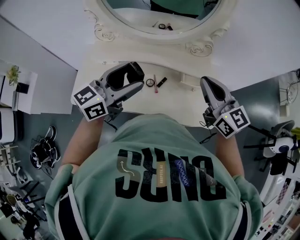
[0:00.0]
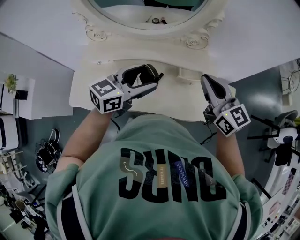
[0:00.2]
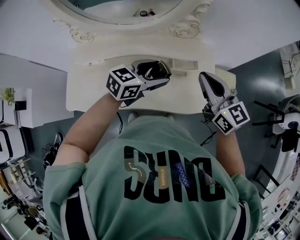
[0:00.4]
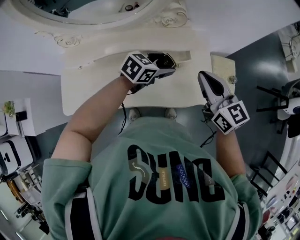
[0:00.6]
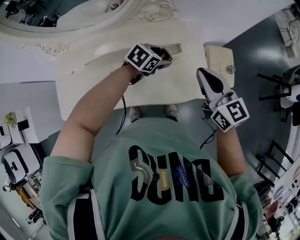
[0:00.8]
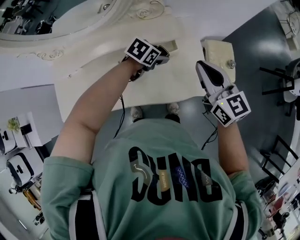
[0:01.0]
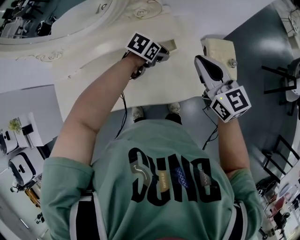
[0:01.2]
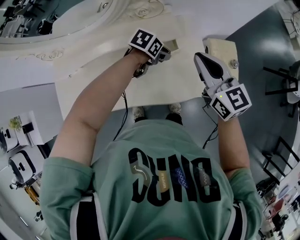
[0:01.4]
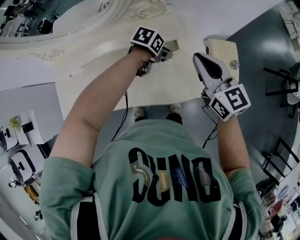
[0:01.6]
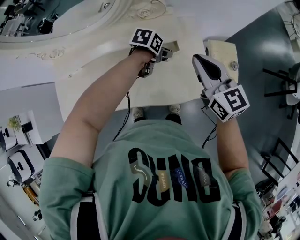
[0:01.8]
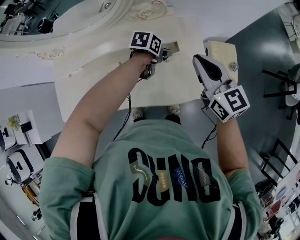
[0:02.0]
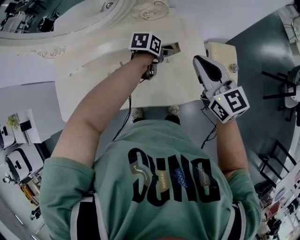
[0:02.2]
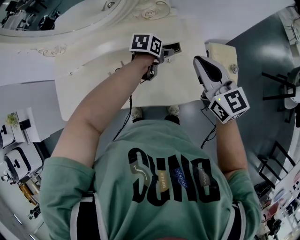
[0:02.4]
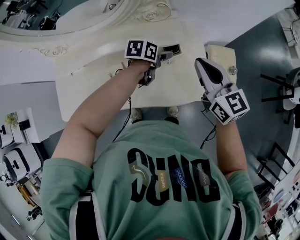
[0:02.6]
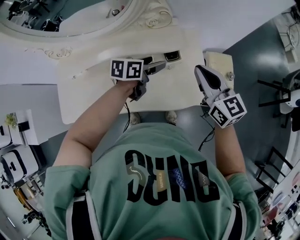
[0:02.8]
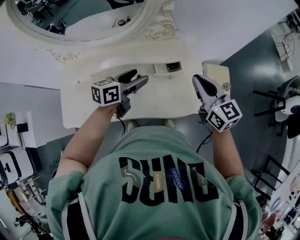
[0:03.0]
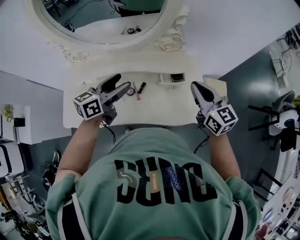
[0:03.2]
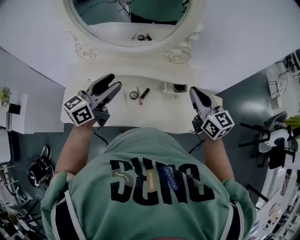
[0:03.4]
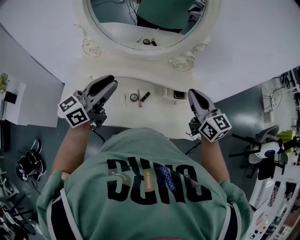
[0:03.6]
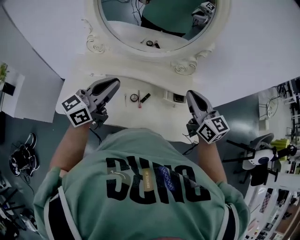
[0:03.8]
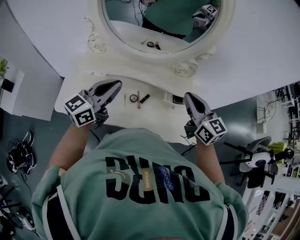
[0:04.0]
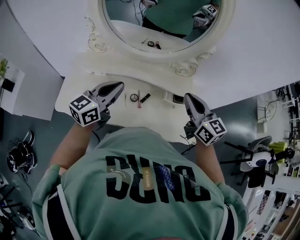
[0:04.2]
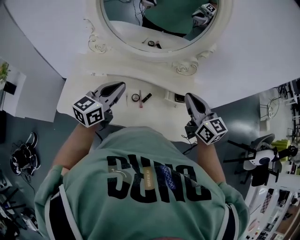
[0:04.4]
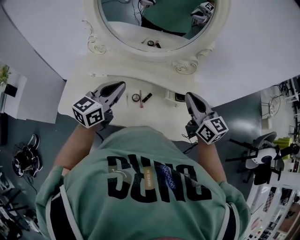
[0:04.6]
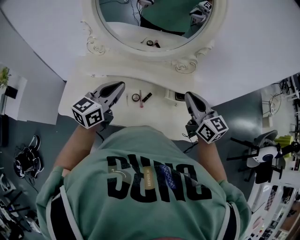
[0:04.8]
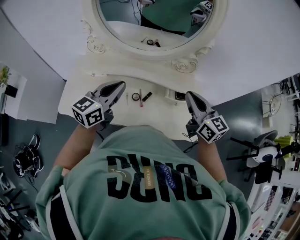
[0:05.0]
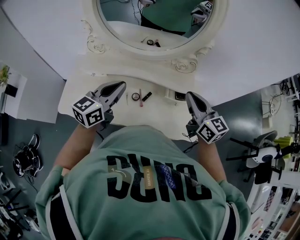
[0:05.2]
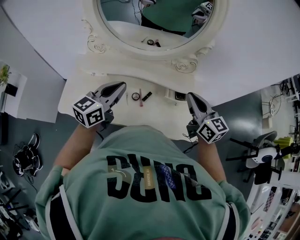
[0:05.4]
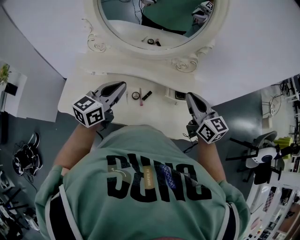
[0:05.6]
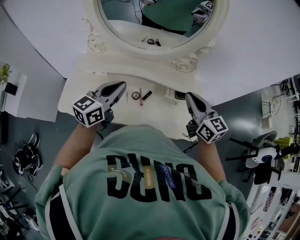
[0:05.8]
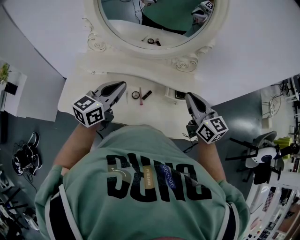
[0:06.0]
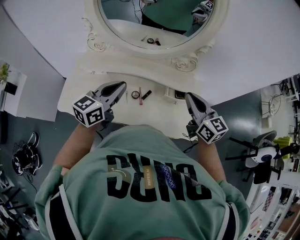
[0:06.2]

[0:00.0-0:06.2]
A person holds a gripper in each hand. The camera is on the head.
0:00.0 to 0:01.6: The right gripper ends up roughly 20 cm from where it was. The left gripper moves downward, roughly 30 cm, and tips its fingers downward by about 60 degrees.
0:01.6 to 0:03.2: The left gripper shifts roughly 35 cm upward, to the left and backward, and tips its fingers upward by about 50 degrees. Meanwhile the right gripper changes place by about 5 cm.
0:03.2 to 0:04.6: Both grippers move to the left, roughly 10 cm. The left gripper swivels roughly 20 degrees, and closes.
0:04.6 to 0:06.2: The grippers move only a little.

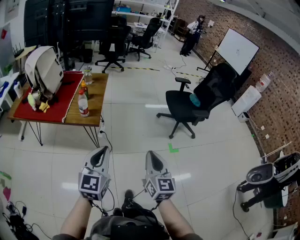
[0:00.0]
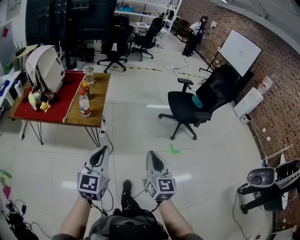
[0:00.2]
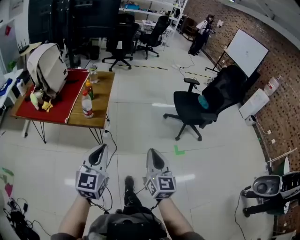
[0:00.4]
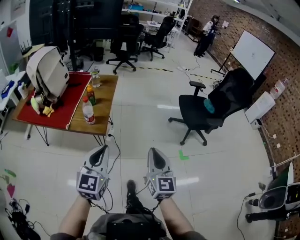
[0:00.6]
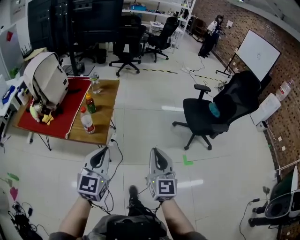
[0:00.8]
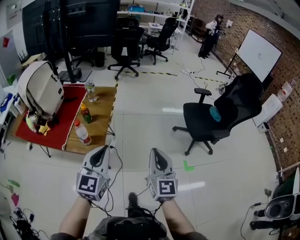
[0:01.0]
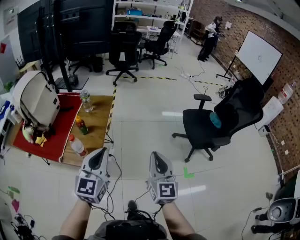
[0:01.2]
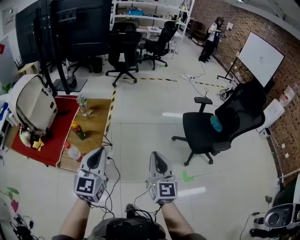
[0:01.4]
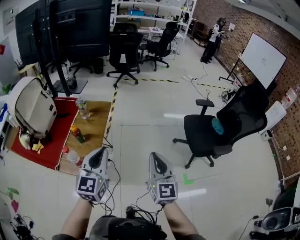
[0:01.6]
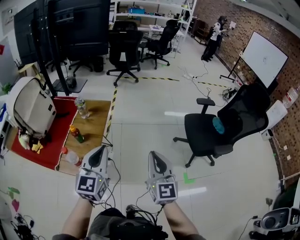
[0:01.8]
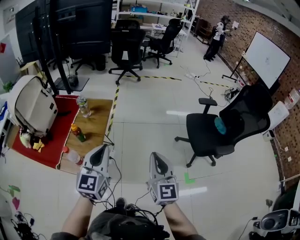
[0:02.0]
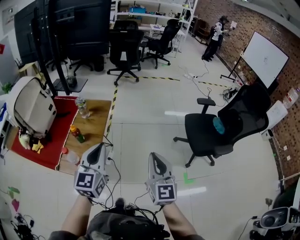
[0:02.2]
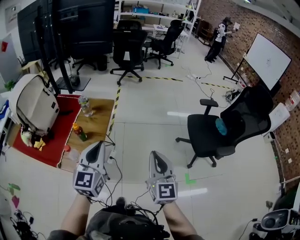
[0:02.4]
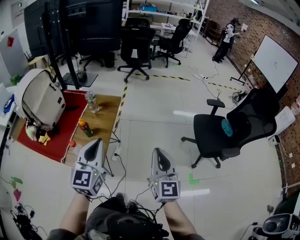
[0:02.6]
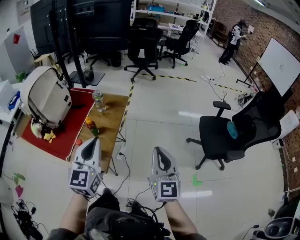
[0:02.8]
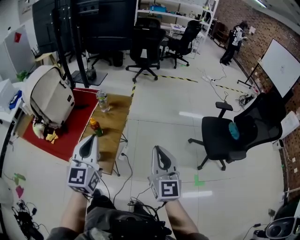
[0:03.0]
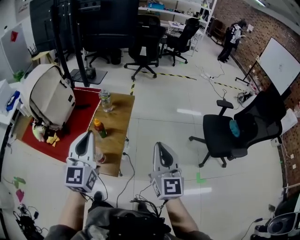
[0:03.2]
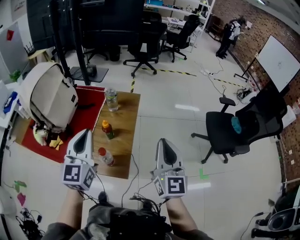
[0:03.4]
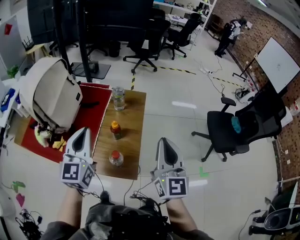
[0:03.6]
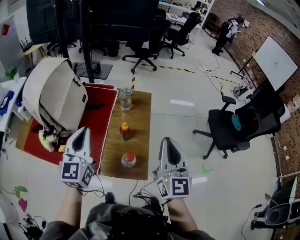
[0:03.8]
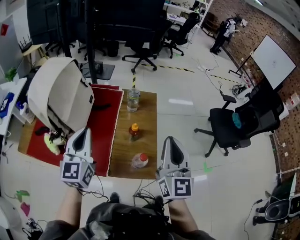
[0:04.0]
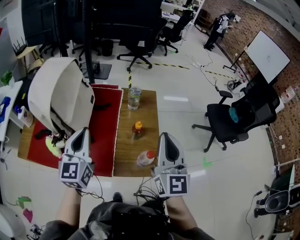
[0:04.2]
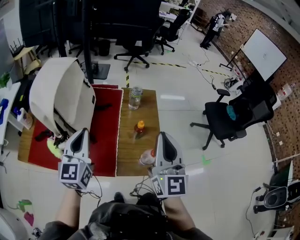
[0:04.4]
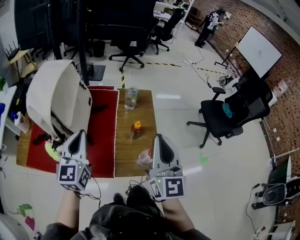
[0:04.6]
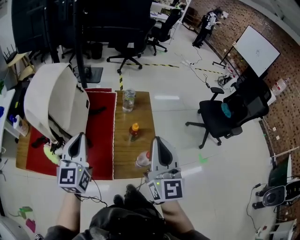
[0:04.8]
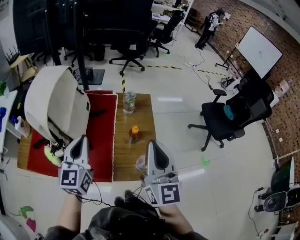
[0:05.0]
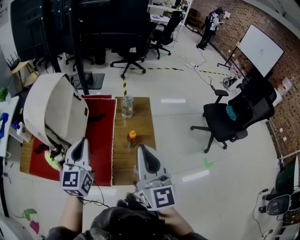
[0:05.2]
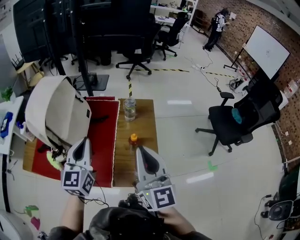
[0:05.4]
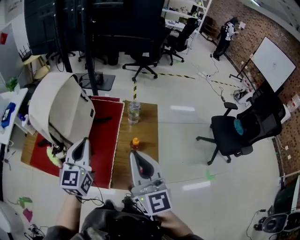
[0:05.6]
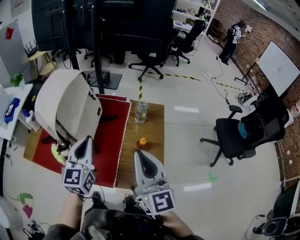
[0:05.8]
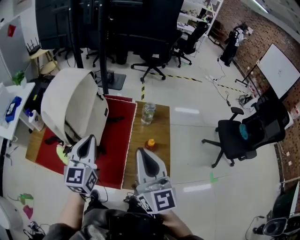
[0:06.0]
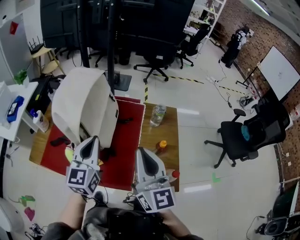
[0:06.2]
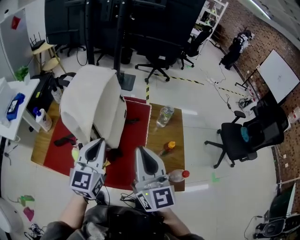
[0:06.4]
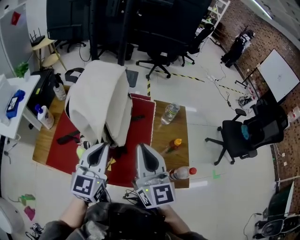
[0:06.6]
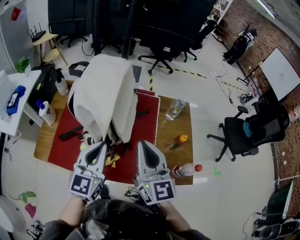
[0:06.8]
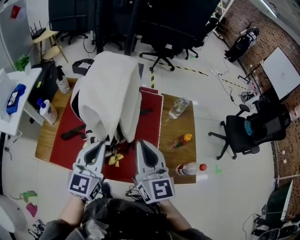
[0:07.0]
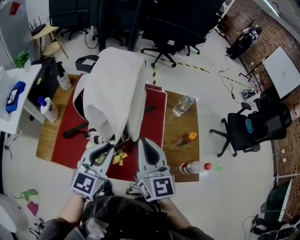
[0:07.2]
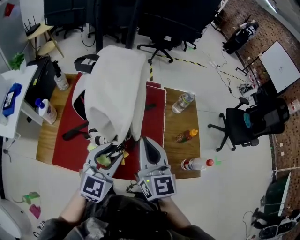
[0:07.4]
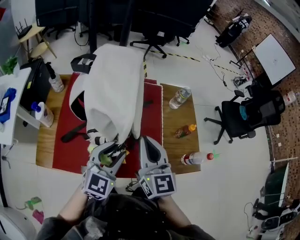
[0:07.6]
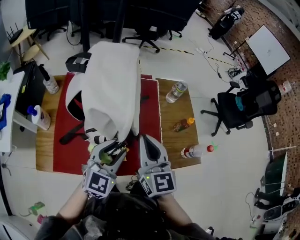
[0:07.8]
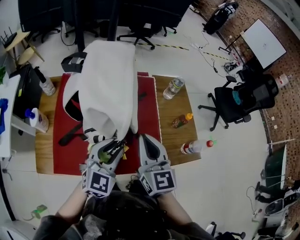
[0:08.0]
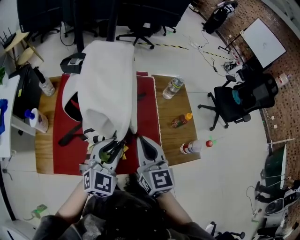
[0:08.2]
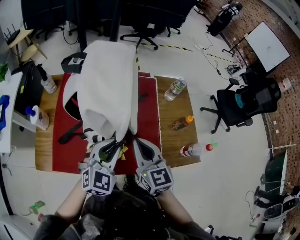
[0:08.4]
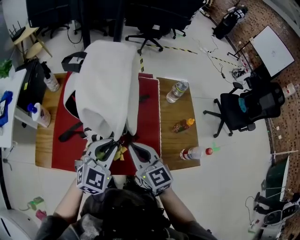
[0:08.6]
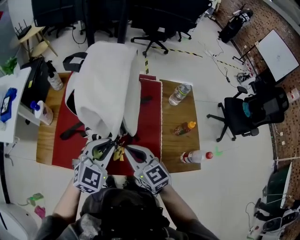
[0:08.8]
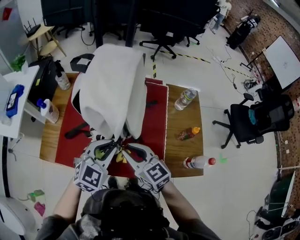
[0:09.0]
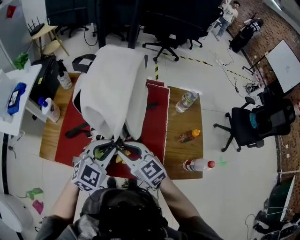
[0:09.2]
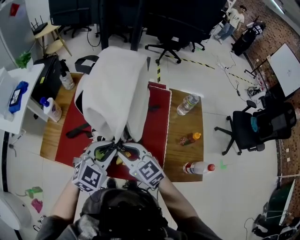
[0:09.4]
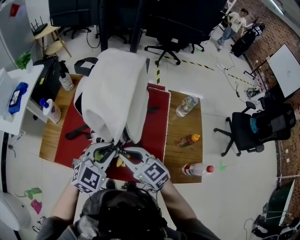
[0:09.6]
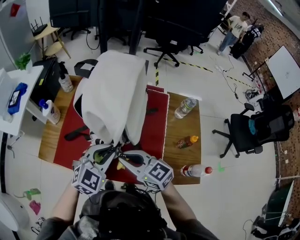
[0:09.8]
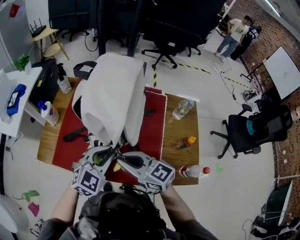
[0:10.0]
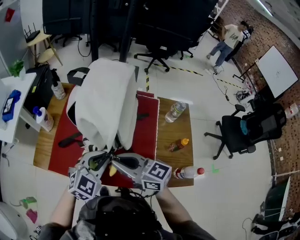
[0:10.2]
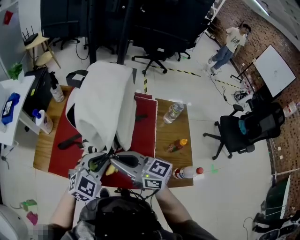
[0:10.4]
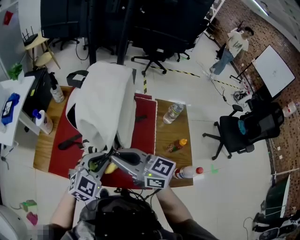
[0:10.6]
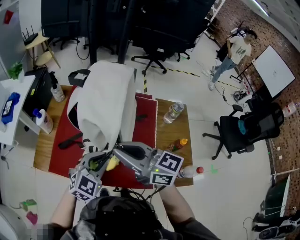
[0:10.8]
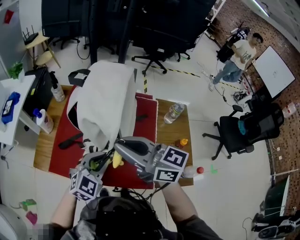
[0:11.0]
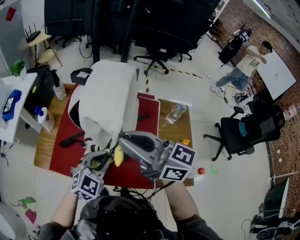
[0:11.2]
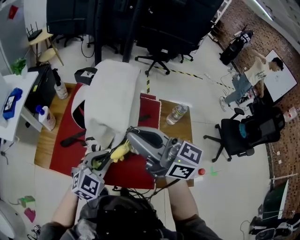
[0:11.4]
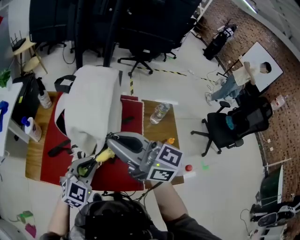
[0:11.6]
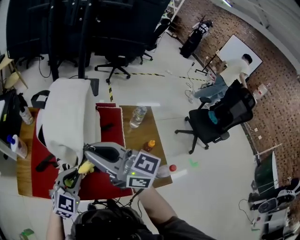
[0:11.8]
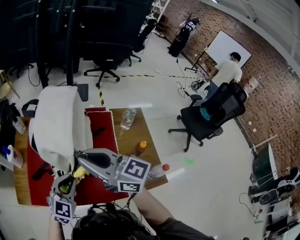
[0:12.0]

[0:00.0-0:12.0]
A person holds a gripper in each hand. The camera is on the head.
0:00.0 to 0:01.6: The pair of grippers is taken forward, about 50 cm.
0:01.6 to 0:03.0: Both grippers travel together to the left, some 10 cm.
0:03.0 to 0:04.4: The pair of grippers is taken to the left, about 50 cm.
0:04.4 to 0:06.0: The right gripper is displaced to the left by approximately 10 cm, and swivels some 20 degrees. The left gripper goes to the right and returns, approximately 10 cm each way.
0:06.0 to 0:07.6: The left gripper moves to the left and downward, approximately 25 cm, turns by approximately 40 degrees, and opens its fingers; the right gripper shifts some 30 cm to the left.
0:07.6 to 0:09.0: The right gripper heads downward, covering about 10 cm, and swivels some 40 degrees. Meanwhile the left gripper closes.
0:09.0 to 0:10.4: The right gripper shifts roughly 10 cm upward, and turns by some 30 degrees.
0:10.4 to 0:12.0: The right gripper moves upward, approximately 15 cm.

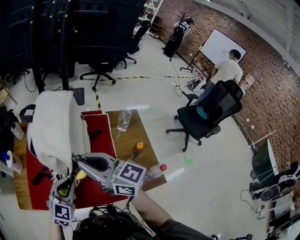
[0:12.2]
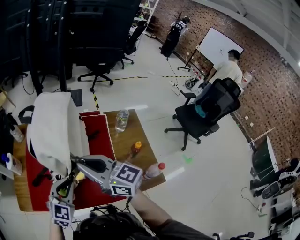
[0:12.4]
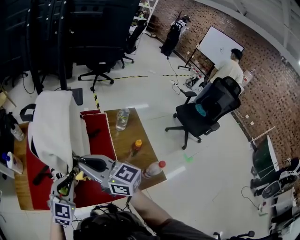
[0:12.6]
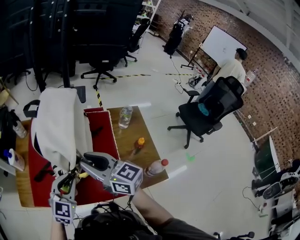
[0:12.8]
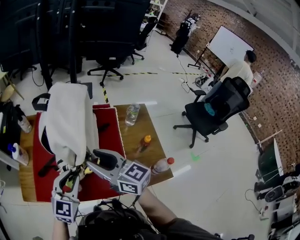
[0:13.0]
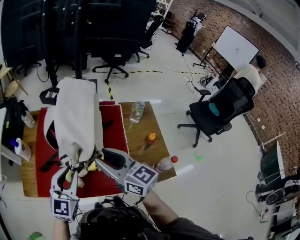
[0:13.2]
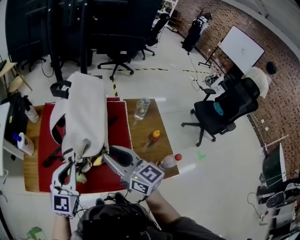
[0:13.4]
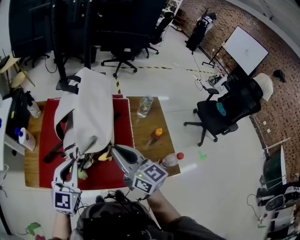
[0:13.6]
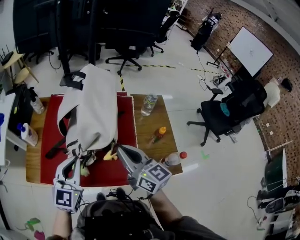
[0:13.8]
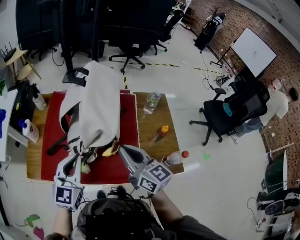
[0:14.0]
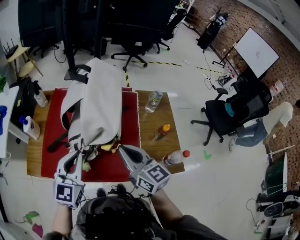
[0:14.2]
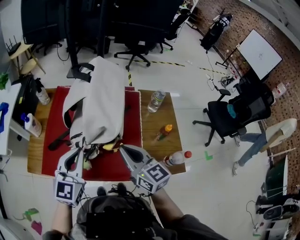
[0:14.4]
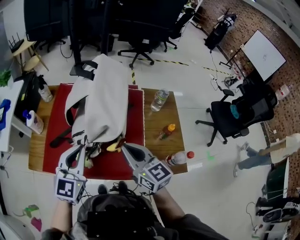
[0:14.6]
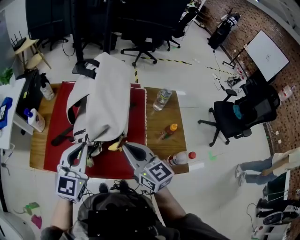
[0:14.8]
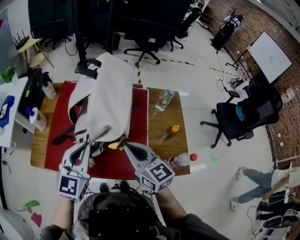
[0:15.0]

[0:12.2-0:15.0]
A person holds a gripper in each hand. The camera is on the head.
0:12.2 to 0:13.6: The right gripper heads downward and to the right, covering some 10 cm, and opens, then closes again. The left gripper goes about 5 cm upward, and changes its angle by roughly 20 degrees.
0:13.6 to 0:15.0: The right gripper changes place by roughly 5 cm.

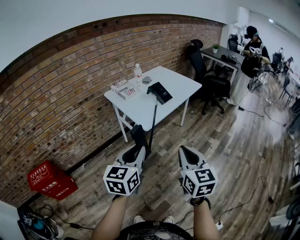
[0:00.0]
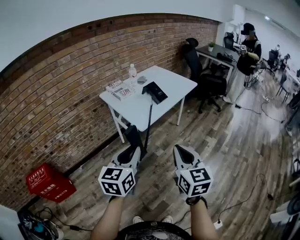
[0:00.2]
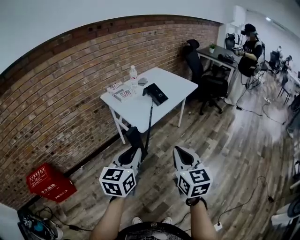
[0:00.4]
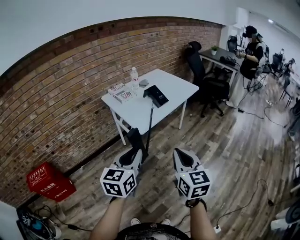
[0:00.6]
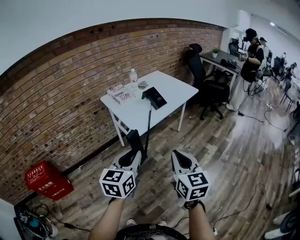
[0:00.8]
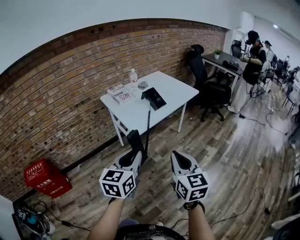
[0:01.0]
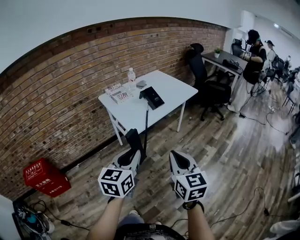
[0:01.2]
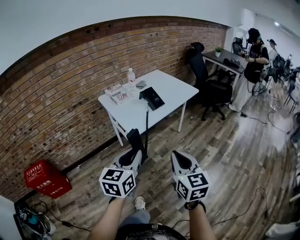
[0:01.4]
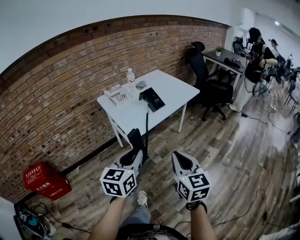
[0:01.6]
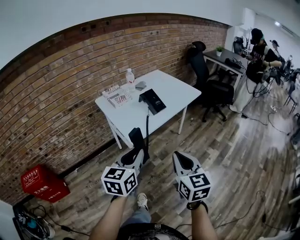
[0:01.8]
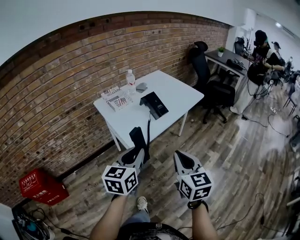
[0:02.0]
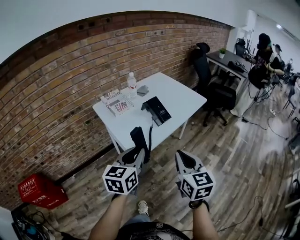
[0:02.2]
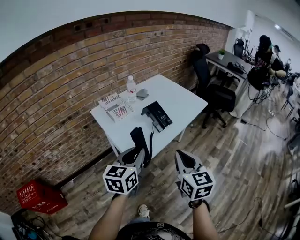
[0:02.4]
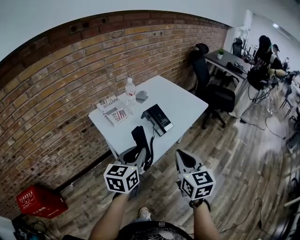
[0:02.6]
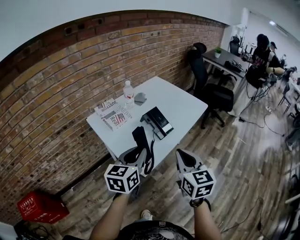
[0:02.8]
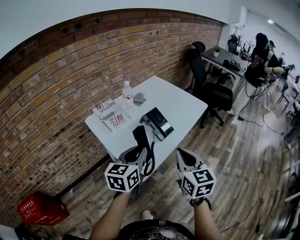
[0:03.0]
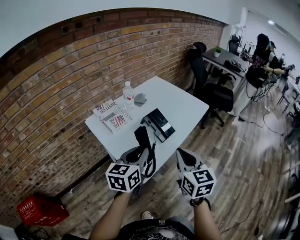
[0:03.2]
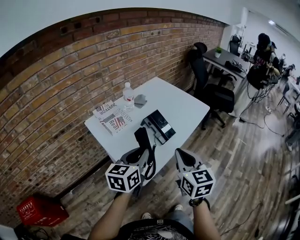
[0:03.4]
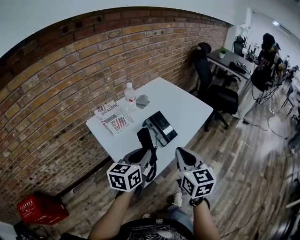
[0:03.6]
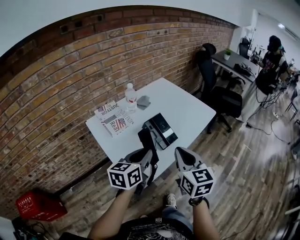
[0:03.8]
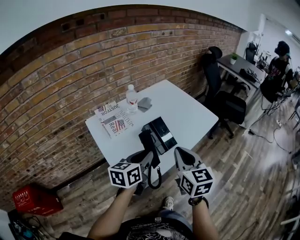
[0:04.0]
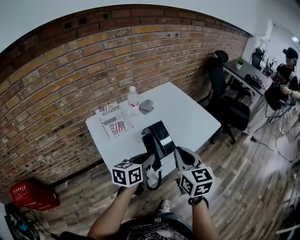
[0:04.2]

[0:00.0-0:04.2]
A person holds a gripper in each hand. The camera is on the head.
0:00.0 to 0:01.4: The two grippers go approximately 10 cm to the right.
0:01.4 to 0:02.8: The two grippers go roughly 30 cm forward.
0:02.8 to 0:04.2: The left gripper moves forward and downward, some 15 cm. Meanwhile the right gripper is displaced forward by approximately 15 cm.
